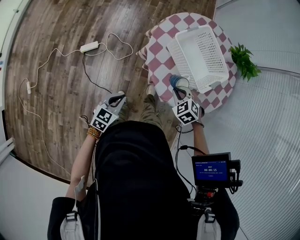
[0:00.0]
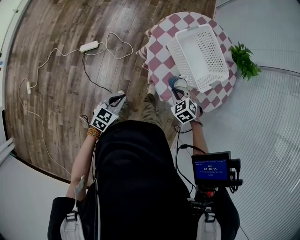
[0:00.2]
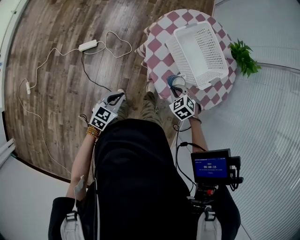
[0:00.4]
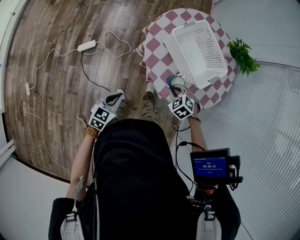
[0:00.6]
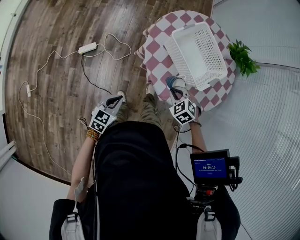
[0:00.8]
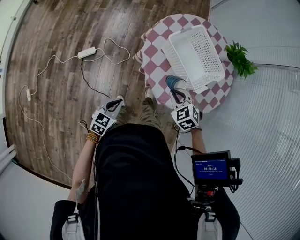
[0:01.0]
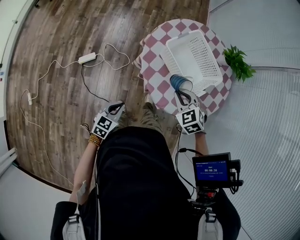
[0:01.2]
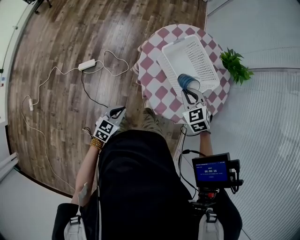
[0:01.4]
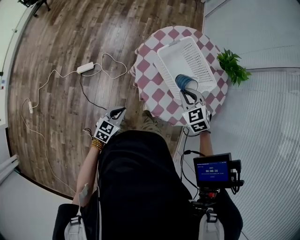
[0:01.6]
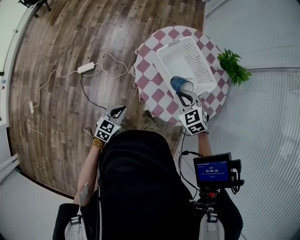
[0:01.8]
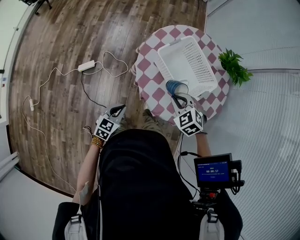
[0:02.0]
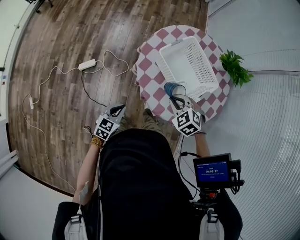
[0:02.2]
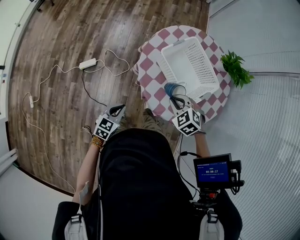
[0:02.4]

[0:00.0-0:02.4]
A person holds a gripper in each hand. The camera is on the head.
0:00.0 to 0:01.2: The right gripper shifts approximately 10 cm upward.

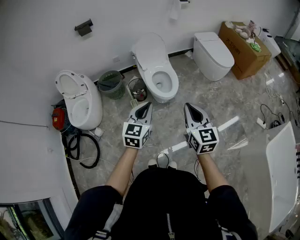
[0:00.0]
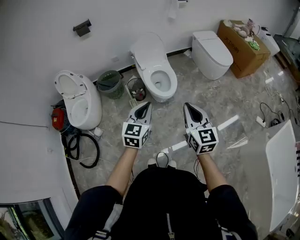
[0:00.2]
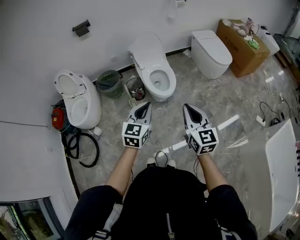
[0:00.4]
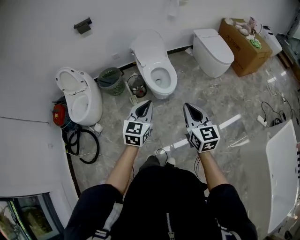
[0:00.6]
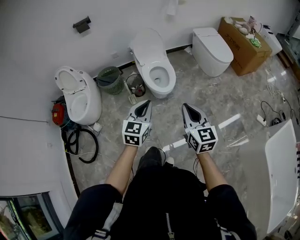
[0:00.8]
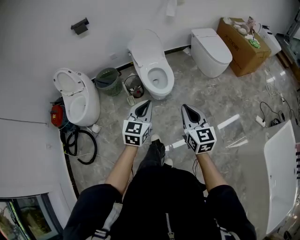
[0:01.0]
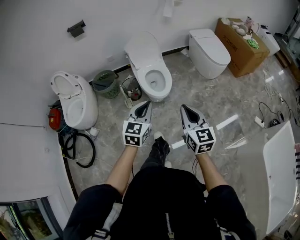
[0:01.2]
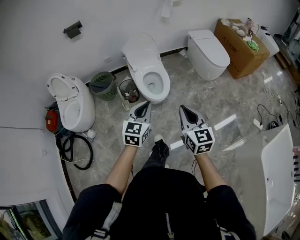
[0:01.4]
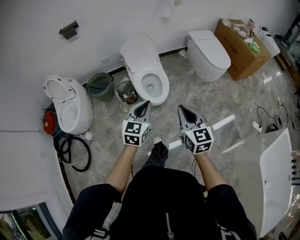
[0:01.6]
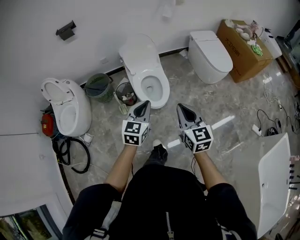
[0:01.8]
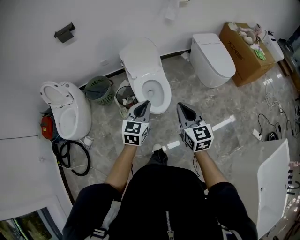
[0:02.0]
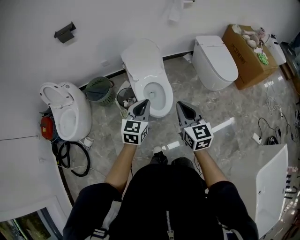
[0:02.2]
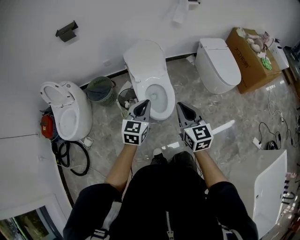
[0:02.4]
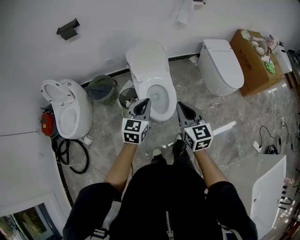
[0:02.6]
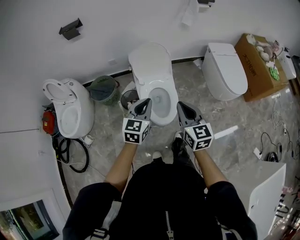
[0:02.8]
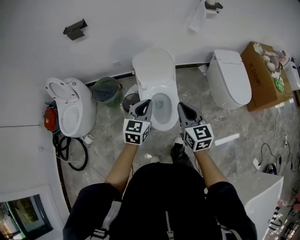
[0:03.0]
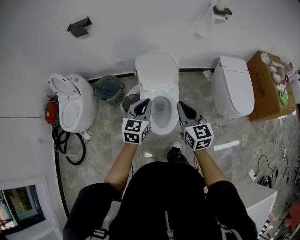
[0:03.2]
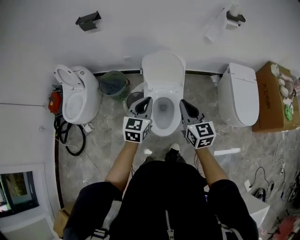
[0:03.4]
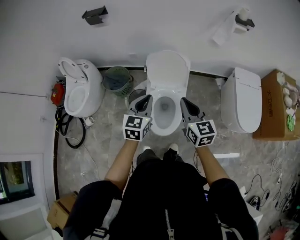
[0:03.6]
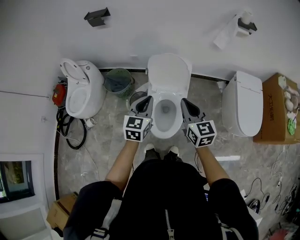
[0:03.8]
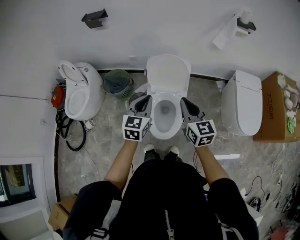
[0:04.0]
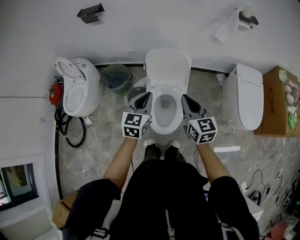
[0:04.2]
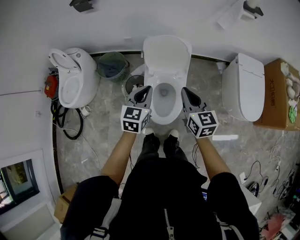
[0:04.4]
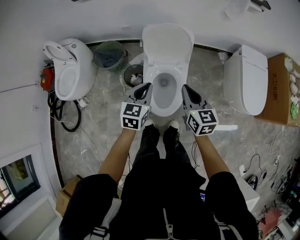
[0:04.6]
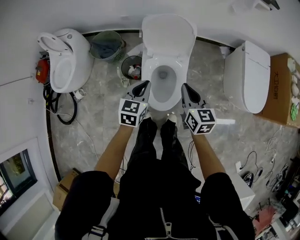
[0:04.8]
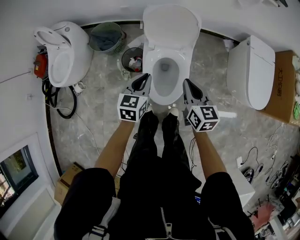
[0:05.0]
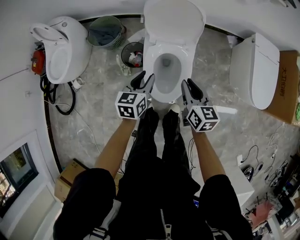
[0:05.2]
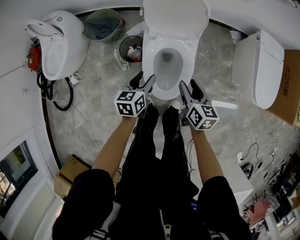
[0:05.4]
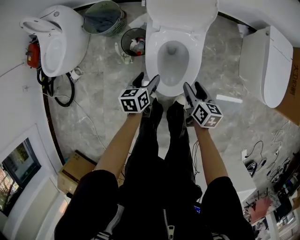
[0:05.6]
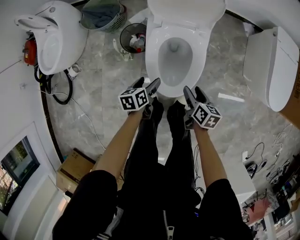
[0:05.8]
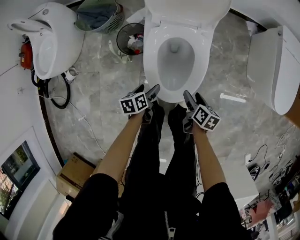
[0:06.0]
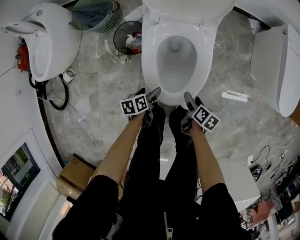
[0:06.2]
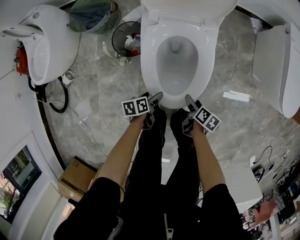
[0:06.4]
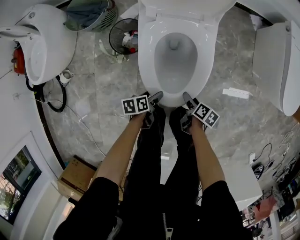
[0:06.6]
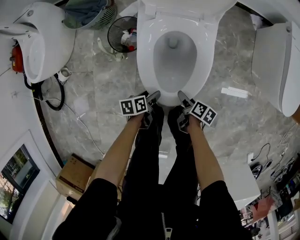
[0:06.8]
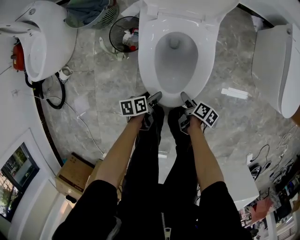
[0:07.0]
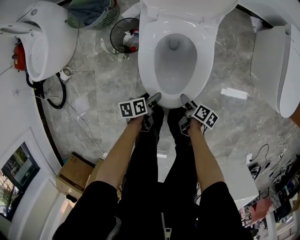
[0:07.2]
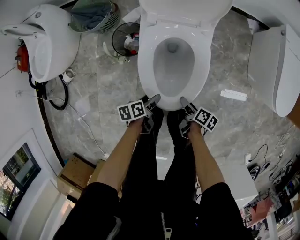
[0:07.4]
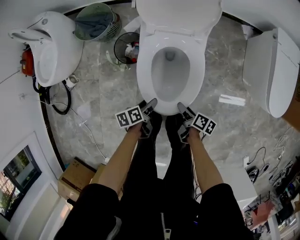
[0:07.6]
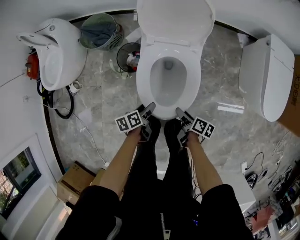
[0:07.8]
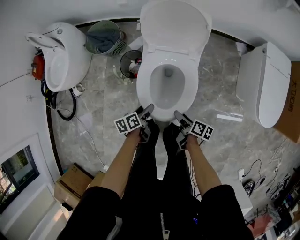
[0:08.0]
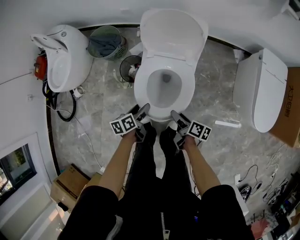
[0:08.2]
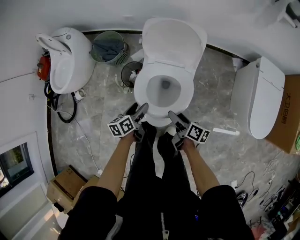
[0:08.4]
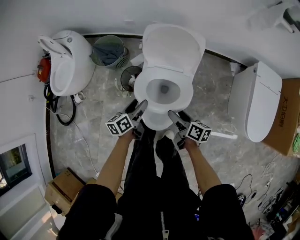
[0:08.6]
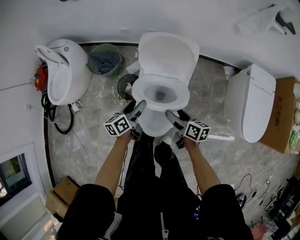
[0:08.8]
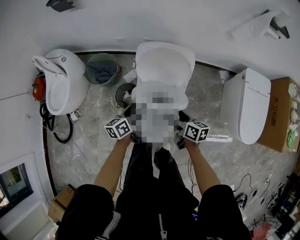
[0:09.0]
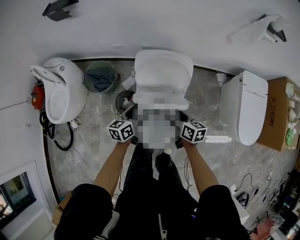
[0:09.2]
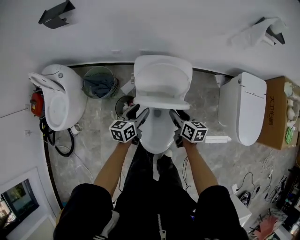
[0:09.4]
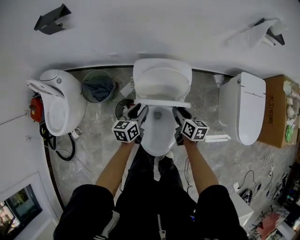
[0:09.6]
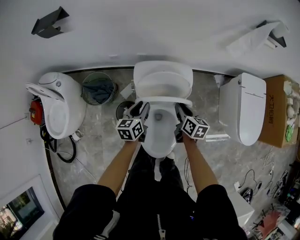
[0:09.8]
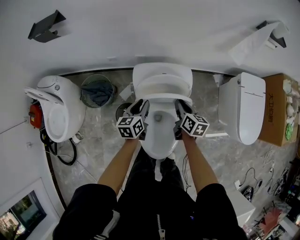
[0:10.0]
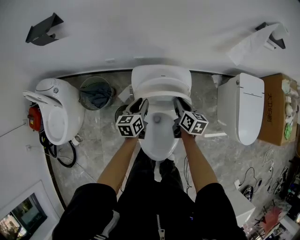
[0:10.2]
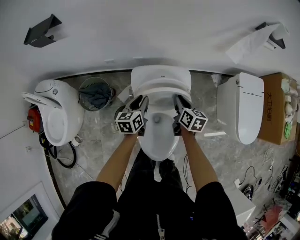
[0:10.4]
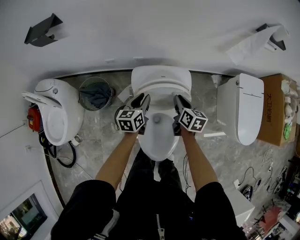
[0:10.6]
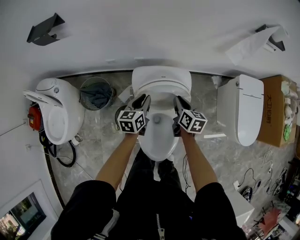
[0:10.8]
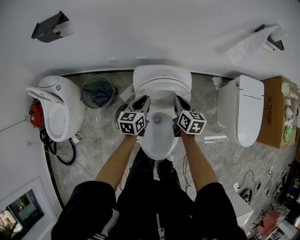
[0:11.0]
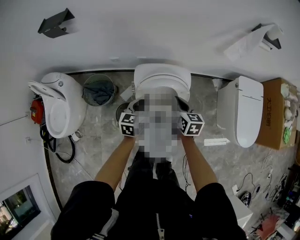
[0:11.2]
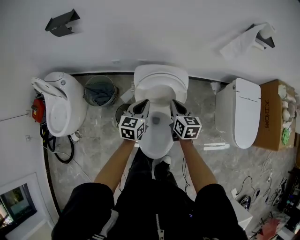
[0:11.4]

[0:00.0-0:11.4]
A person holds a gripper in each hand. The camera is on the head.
0:00.0 to 0:01.4: The left gripper goes some 10 cm to the right and forward. Meanwhile the right gripper travels to the right by roughly 5 cm.
0:01.4 to 0:02.8: Both grippers move forward, approximately 35 cm.
0:02.8 to 0:04.2: Both grippers move forward, about 15 cm.
0:04.2 to 0:05.6: The grippers both shift downward by roughly 35 cm. The left gripper swivels some 40 degrees, and opens up; the right gripper turns by roughly 40 degrees, and opens up.
0:05.6 to 0:07.2: The grippers both shift downward by roughly 25 cm. The left gripper swivels some 30 degrees. Meanwhile the right gripper swivels approximately 40 degrees.
0:07.2 to 0:08.6: Both grippers travel together upward and forward, some 35 cm. The left gripper turns by roughly 40 degrees. The right gripper rotates approximately 40 degrees.
0:08.6 to 0:10.0: Both grippers travel together forward, roughly 25 cm. The left gripper changes its angle by roughly 20 degrees, and closes up. The right gripper rotates some 30 degrees, and closes up.
0:10.0 to 0:11.4: The grippers both shift upward by about 10 cm.

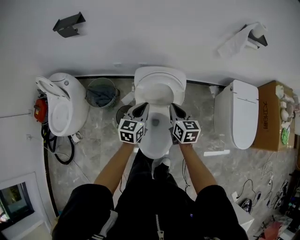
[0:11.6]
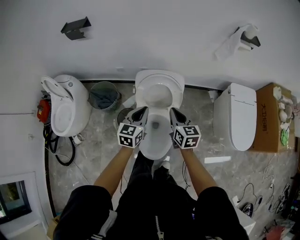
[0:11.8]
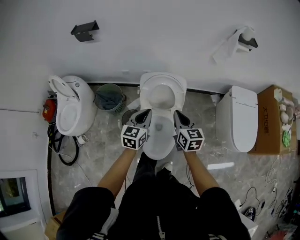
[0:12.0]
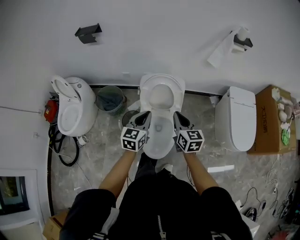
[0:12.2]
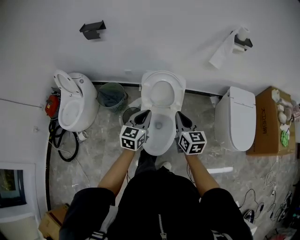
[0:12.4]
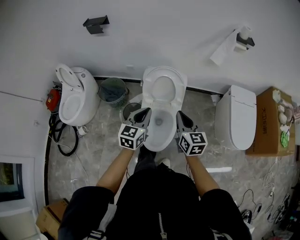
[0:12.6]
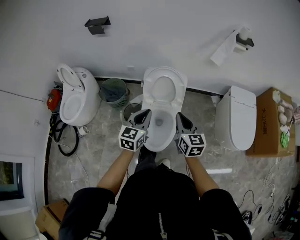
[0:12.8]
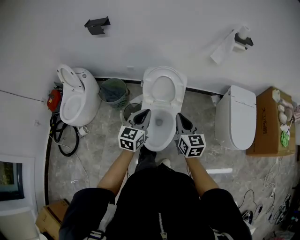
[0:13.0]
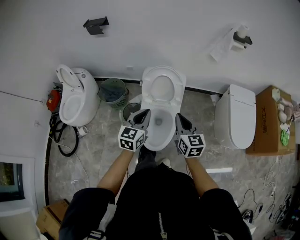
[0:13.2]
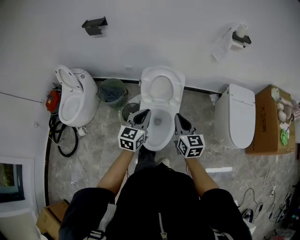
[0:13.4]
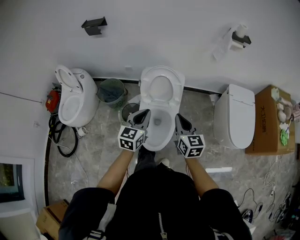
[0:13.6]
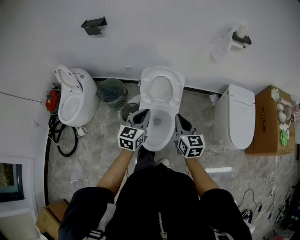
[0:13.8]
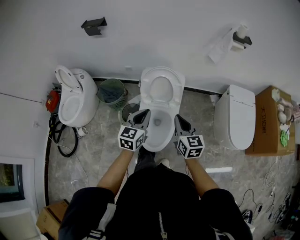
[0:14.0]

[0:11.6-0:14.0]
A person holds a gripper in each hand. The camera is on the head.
0:11.6 to 0:12.8: Both grippers travel together backward and upward, approximately 25 cm.
0:12.8 to 0:14.0: The grippers stay close to where they were, moving slightly.

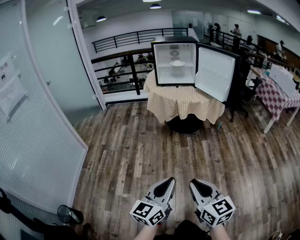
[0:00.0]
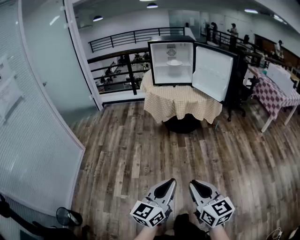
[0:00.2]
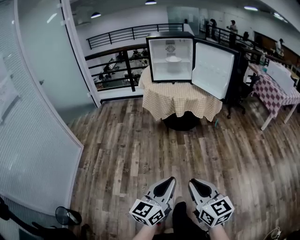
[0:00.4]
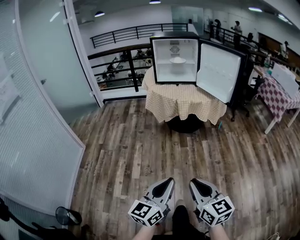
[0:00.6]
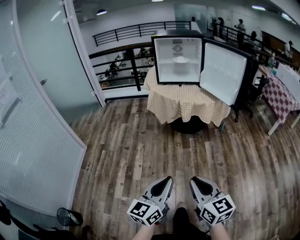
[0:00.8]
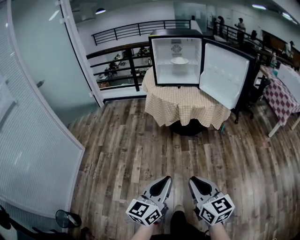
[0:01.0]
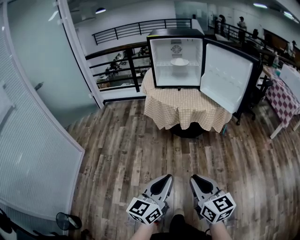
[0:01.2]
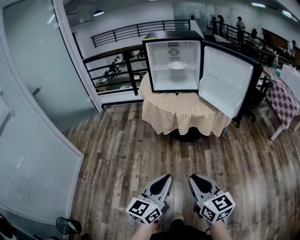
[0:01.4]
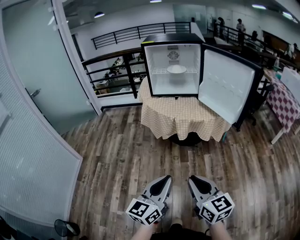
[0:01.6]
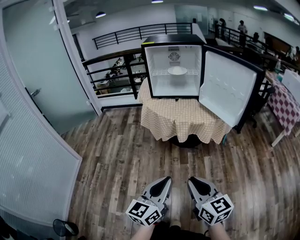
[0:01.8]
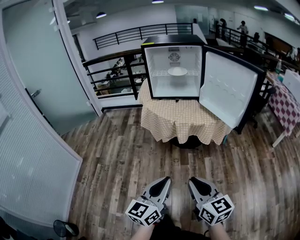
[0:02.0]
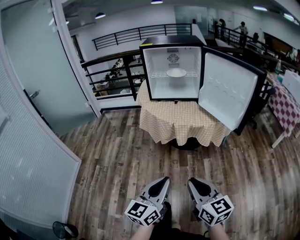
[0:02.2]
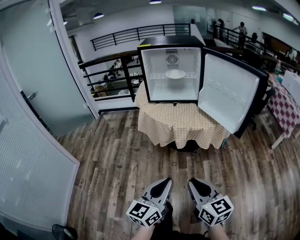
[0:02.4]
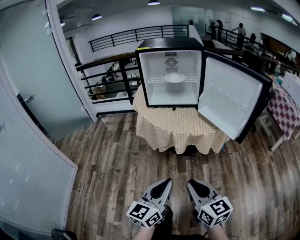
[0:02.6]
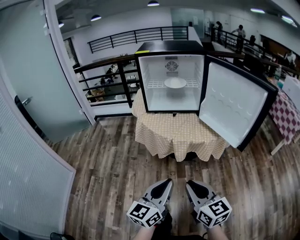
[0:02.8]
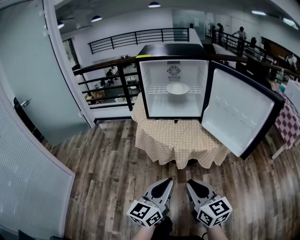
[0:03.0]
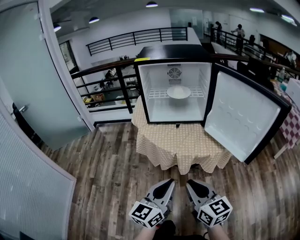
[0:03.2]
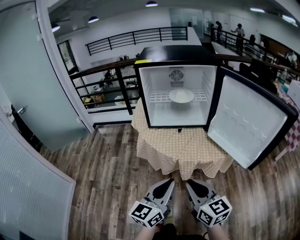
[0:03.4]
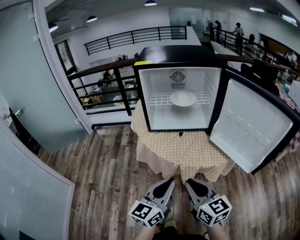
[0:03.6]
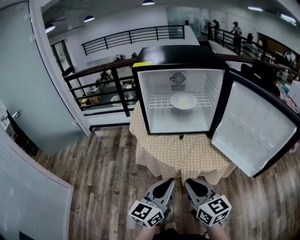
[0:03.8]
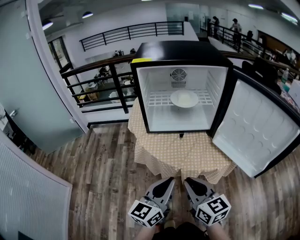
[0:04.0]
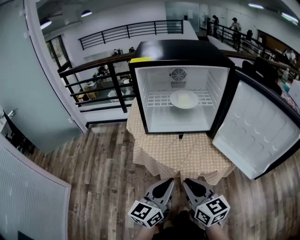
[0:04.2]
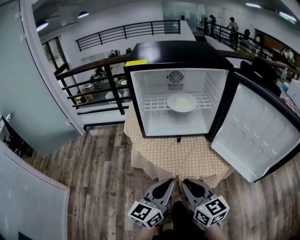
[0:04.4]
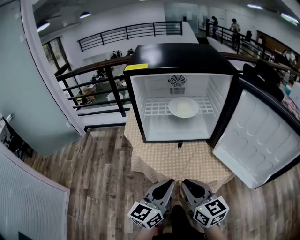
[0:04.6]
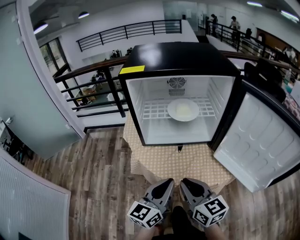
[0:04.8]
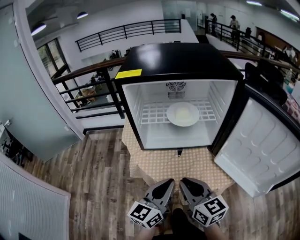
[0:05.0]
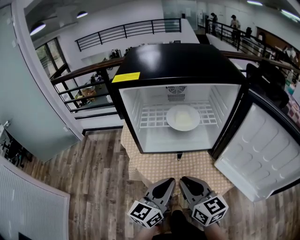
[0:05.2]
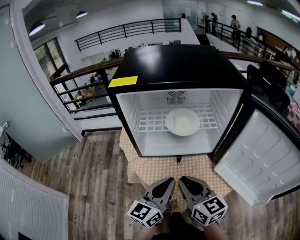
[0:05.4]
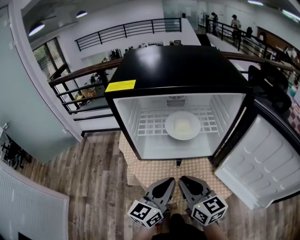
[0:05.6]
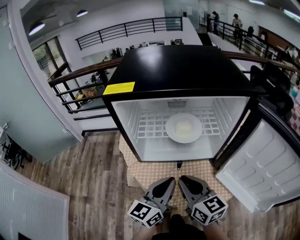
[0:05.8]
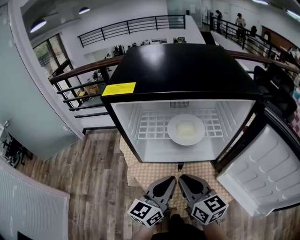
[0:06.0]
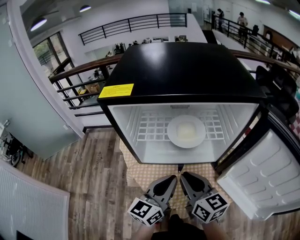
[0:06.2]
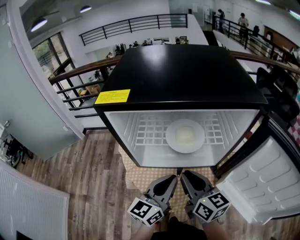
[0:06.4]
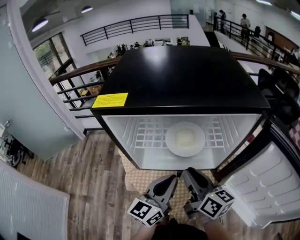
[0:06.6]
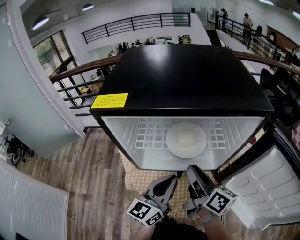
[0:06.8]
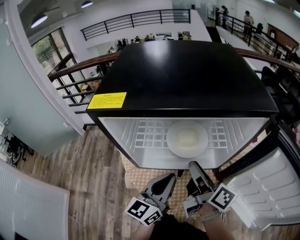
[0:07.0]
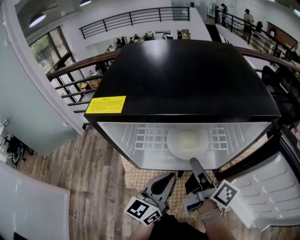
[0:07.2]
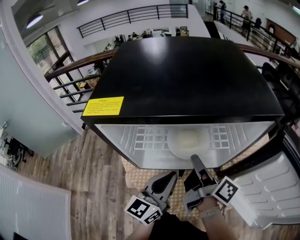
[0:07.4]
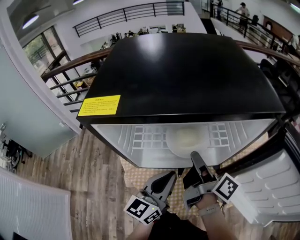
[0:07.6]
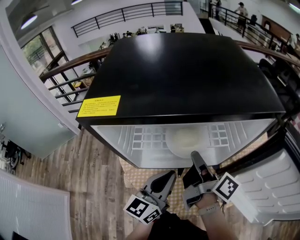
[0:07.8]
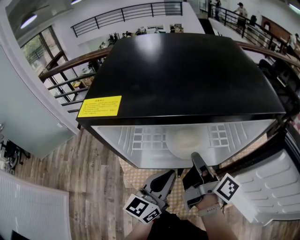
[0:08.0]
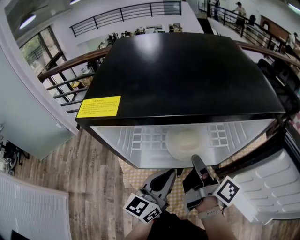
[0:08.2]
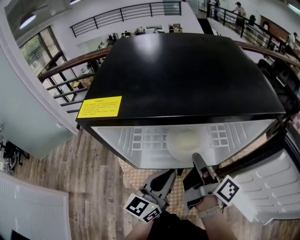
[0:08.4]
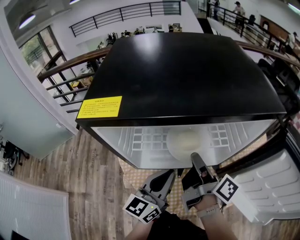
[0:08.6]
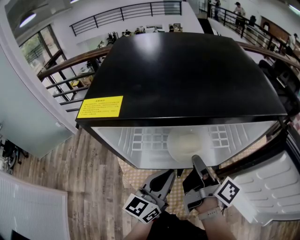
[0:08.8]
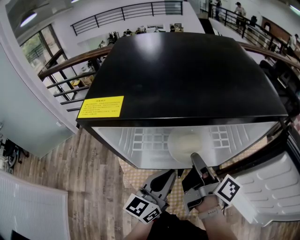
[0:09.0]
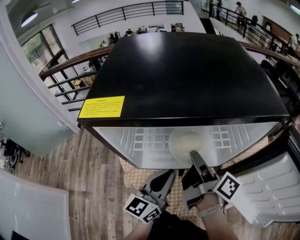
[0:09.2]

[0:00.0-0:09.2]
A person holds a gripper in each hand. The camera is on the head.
0:00.0 to 0:01.6: Both grippers move forward, about 30 cm.
0:01.6 to 0:03.0: The two grippers go roughly 20 cm forward.
0:03.0 to 0:04.6: The grippers both shift forward by approximately 25 cm.
0:04.6 to 0:06.2: The grippers both shift forward by some 20 cm.
0:06.2 to 0:07.6: The left gripper shifts about 5 cm forward; the right gripper goes roughly 10 cm forward, and rolls clockwise, seen from behind, by approximately 60 degrees.
0:07.6 to 0:09.2: There are only small adjustments of the grippers.
